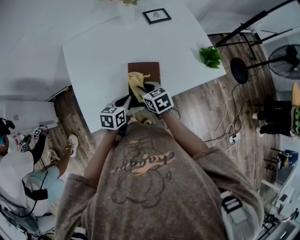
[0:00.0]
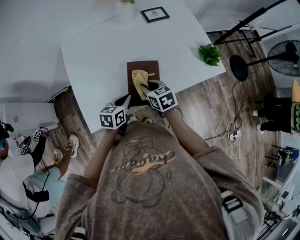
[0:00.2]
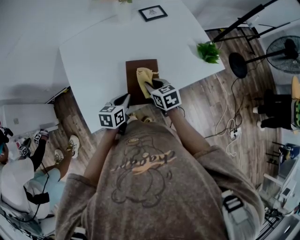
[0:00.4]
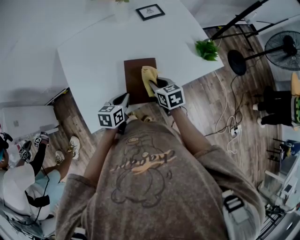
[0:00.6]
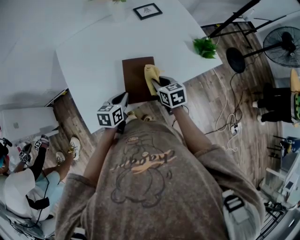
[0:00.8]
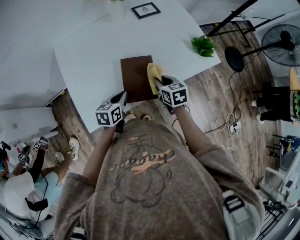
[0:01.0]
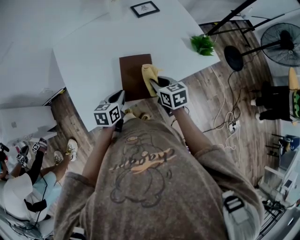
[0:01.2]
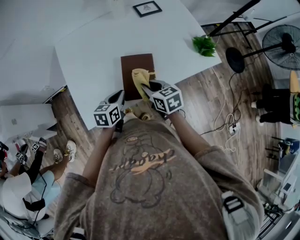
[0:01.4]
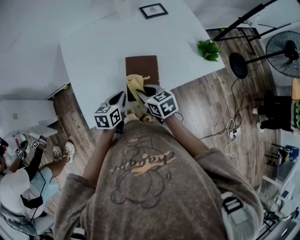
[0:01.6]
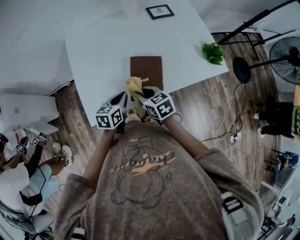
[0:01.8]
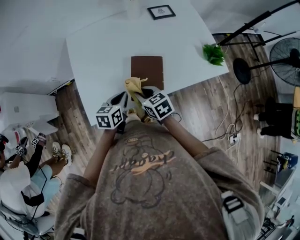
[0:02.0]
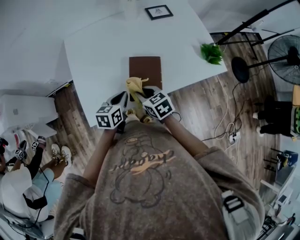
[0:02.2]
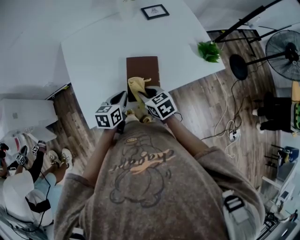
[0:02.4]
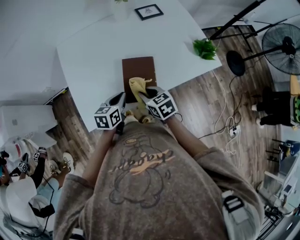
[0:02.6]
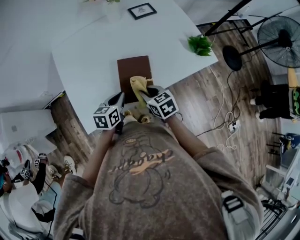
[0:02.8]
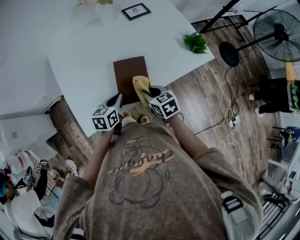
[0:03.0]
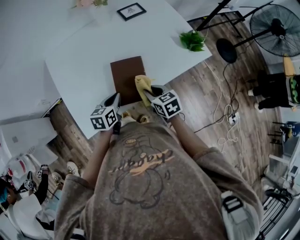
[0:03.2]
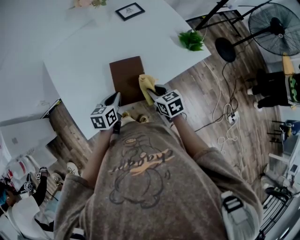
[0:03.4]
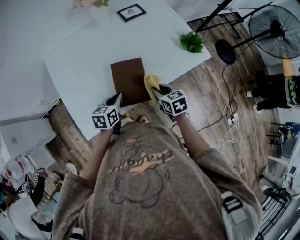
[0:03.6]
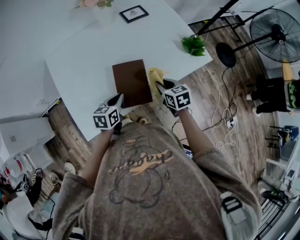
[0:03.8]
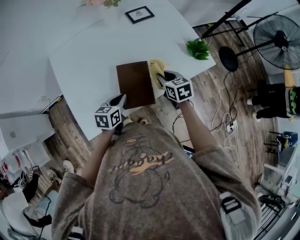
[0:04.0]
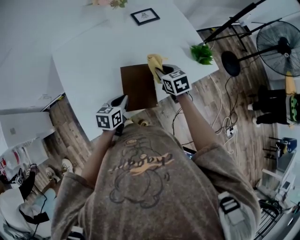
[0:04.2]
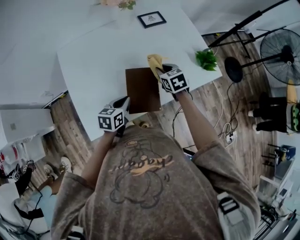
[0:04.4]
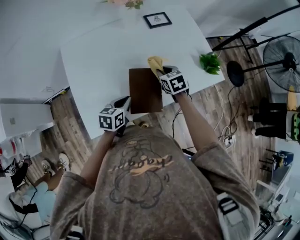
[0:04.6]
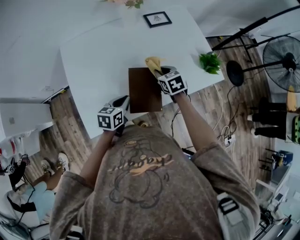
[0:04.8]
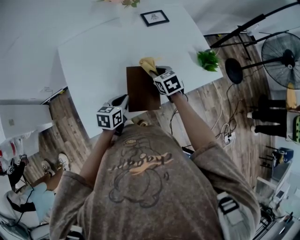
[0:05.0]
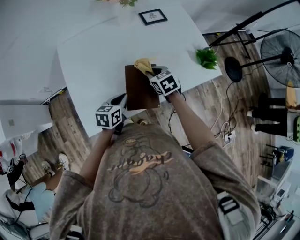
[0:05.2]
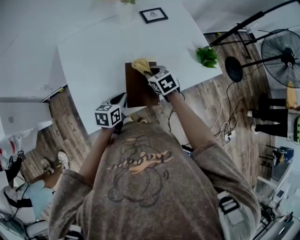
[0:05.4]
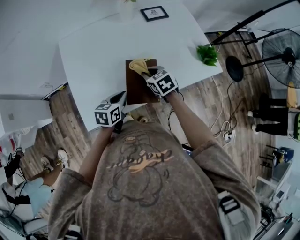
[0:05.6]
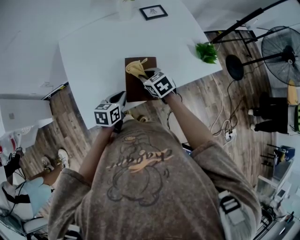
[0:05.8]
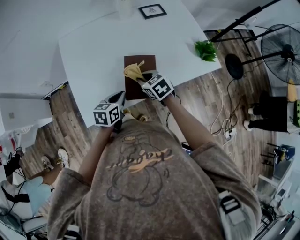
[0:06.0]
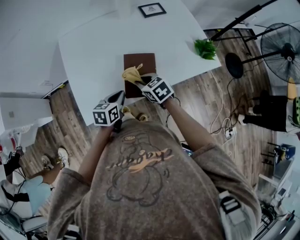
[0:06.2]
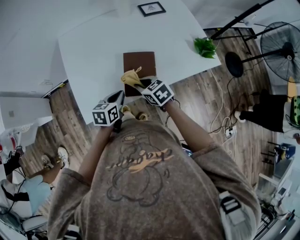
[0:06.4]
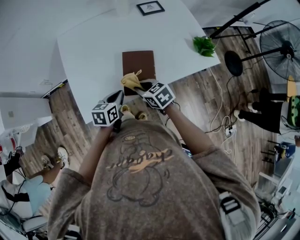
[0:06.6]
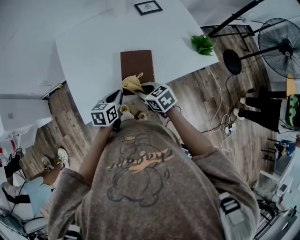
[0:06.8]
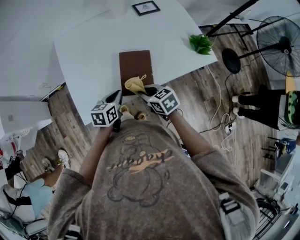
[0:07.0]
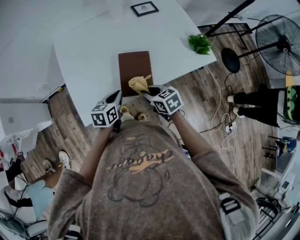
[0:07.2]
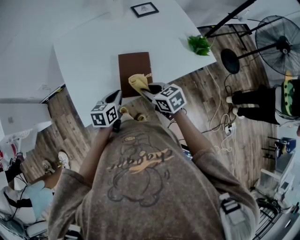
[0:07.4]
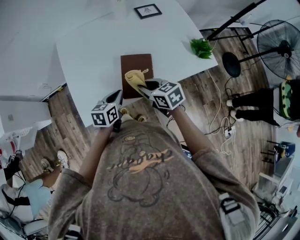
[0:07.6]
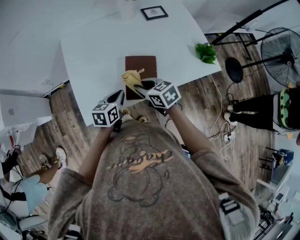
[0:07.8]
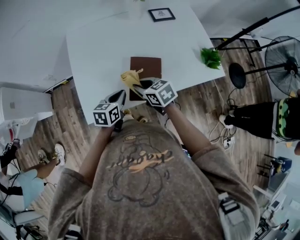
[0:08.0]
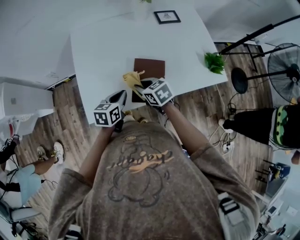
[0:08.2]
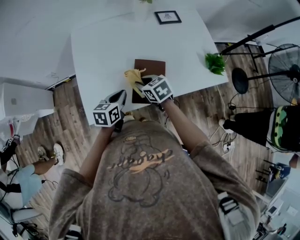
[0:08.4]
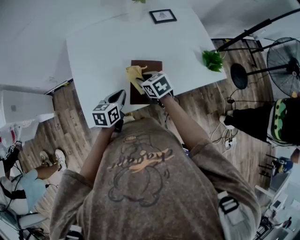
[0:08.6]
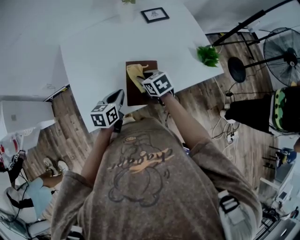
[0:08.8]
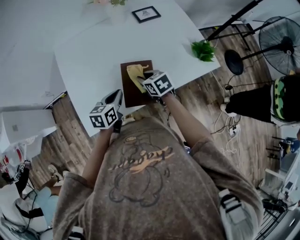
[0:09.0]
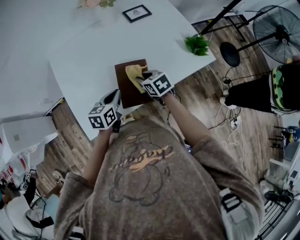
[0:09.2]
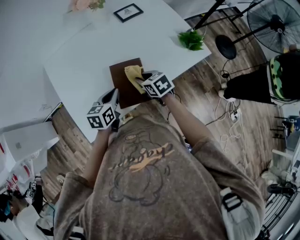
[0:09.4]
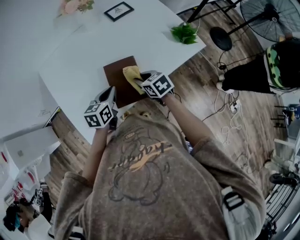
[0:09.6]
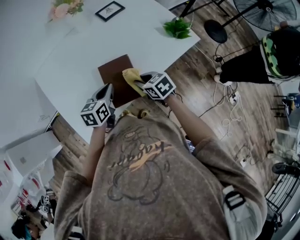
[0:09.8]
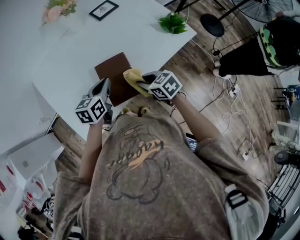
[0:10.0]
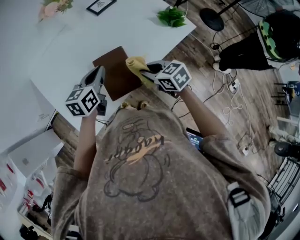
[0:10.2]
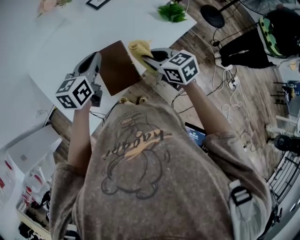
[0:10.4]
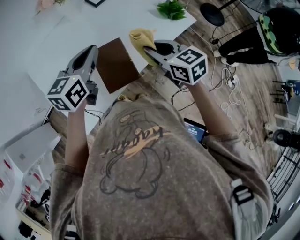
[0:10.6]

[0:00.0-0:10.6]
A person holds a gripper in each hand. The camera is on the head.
0:00.0 to 0:01.6: The right gripper is displaced backward by about 5 cm, and reaches about 10 cm to the right, then returns.
0:01.6 to 0:03.0: The right gripper moves to the right, about 5 cm.
0:03.0 to 0:04.6: The right gripper heads forward, covering some 15 cm.
0:04.6 to 0:06.0: The right gripper heads backward and to the left, covering some 15 cm.
0:06.0 to 0:07.6: The right gripper shifts approximately 5 cm backward.
0:07.6 to 0:09.0: The left gripper changes place by about 5 cm. The right gripper is displaced forward by roughly 10 cm.
0:09.0 to 0:10.6: The two grippers go approximately 20 cm upward and to the right. The right gripper changes its angle by roughly 20 degrees; the left gripper turns by about 30 degrees.

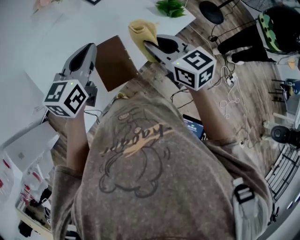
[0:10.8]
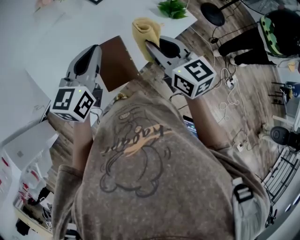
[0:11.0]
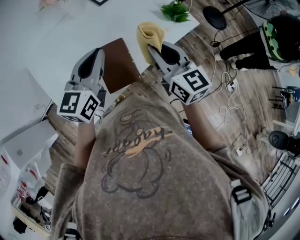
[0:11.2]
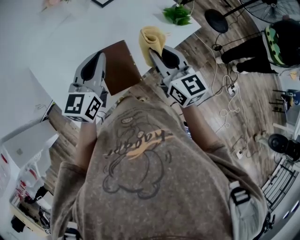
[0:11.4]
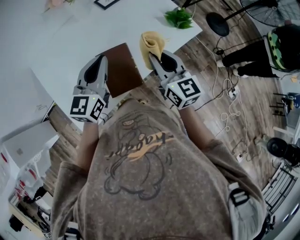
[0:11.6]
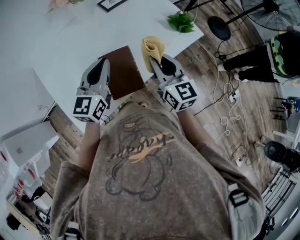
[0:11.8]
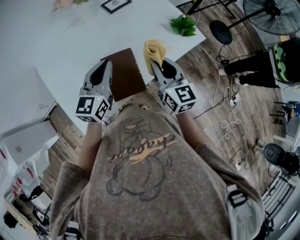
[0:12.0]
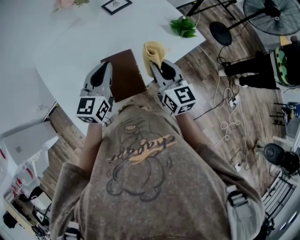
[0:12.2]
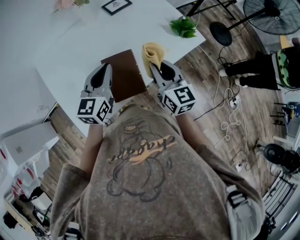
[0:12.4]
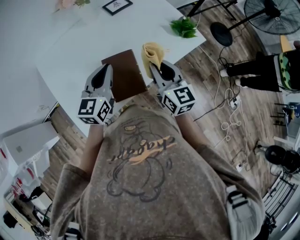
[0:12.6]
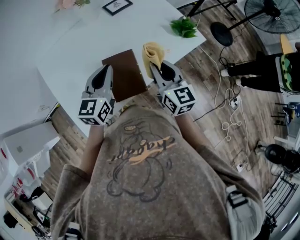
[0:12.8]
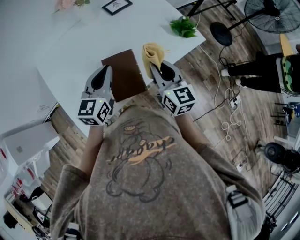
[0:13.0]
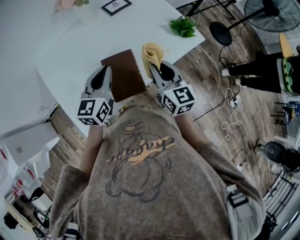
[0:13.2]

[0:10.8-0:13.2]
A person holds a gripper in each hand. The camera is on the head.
0:10.8 to 0:12.0: The left gripper moves downward, some 5 cm.
0:12.0 to 0:13.2: The grippers move only a little.

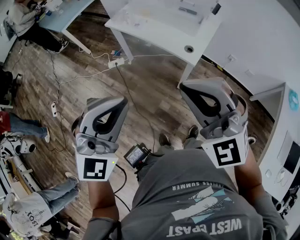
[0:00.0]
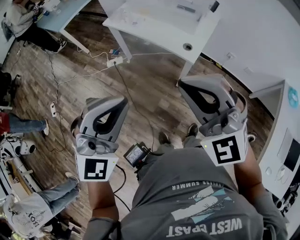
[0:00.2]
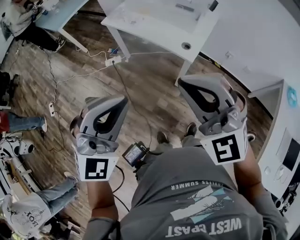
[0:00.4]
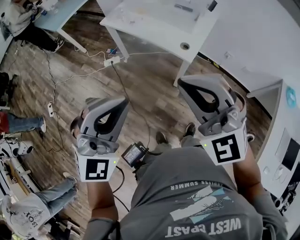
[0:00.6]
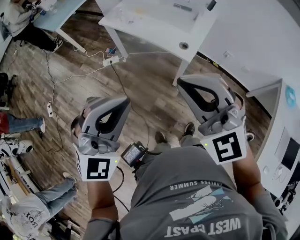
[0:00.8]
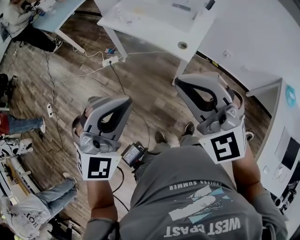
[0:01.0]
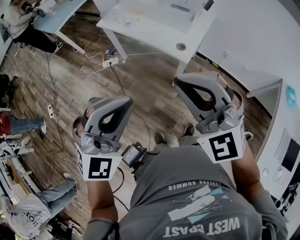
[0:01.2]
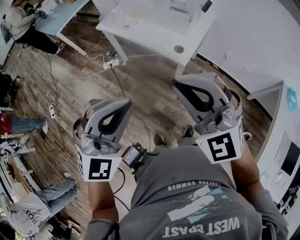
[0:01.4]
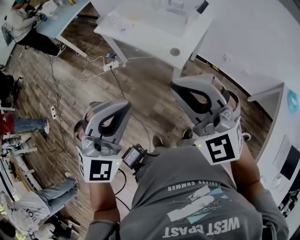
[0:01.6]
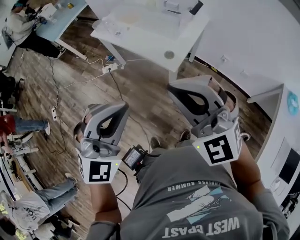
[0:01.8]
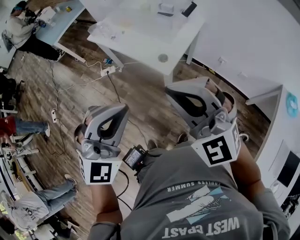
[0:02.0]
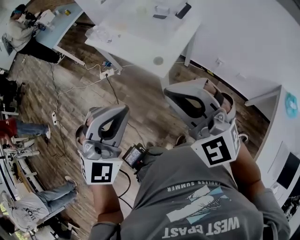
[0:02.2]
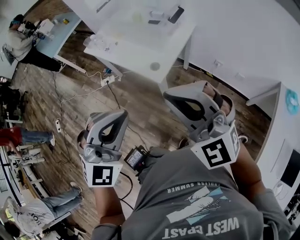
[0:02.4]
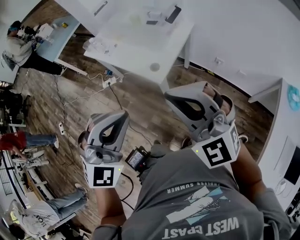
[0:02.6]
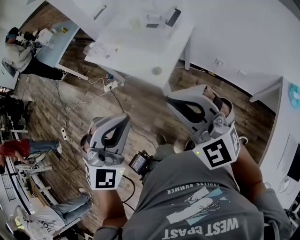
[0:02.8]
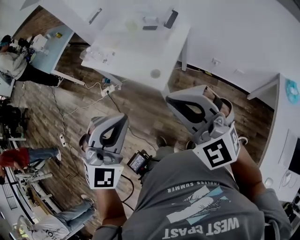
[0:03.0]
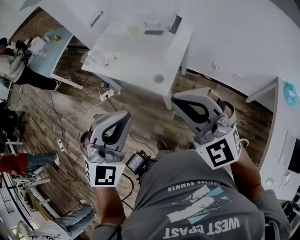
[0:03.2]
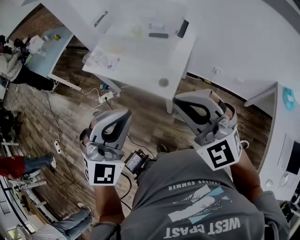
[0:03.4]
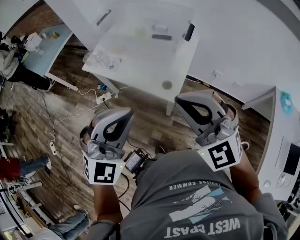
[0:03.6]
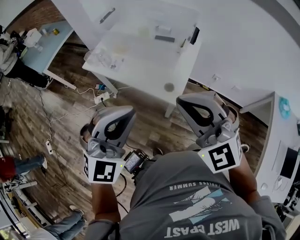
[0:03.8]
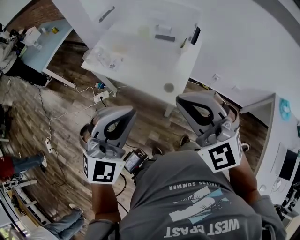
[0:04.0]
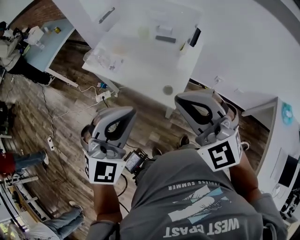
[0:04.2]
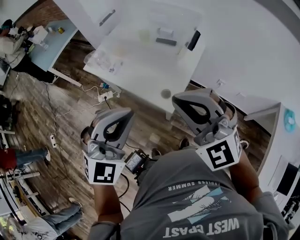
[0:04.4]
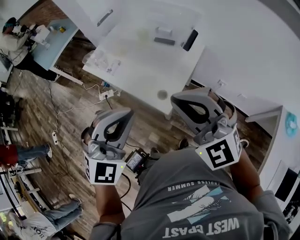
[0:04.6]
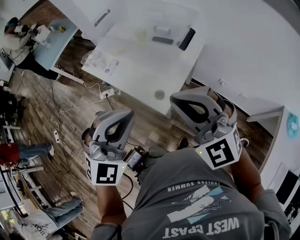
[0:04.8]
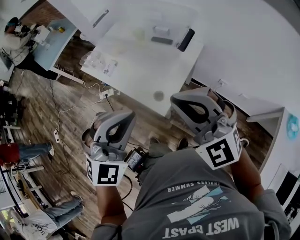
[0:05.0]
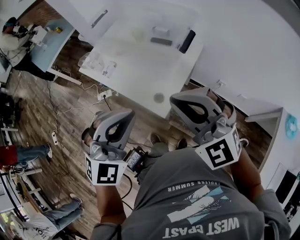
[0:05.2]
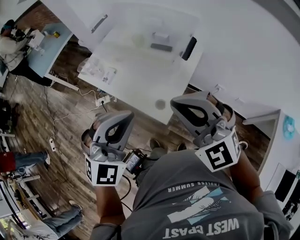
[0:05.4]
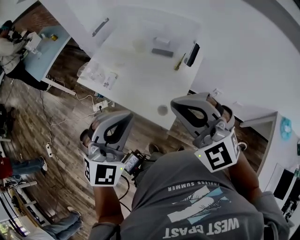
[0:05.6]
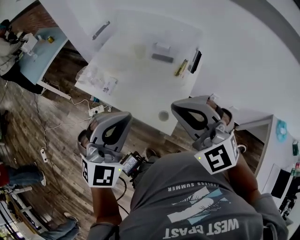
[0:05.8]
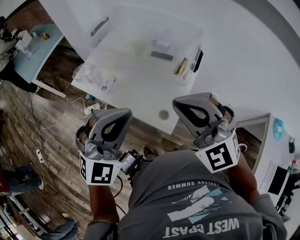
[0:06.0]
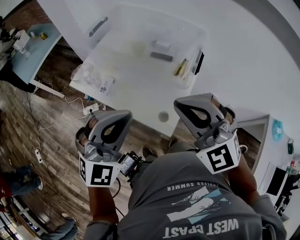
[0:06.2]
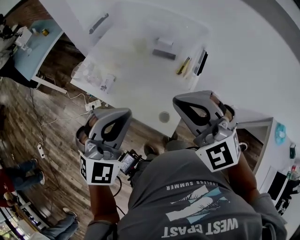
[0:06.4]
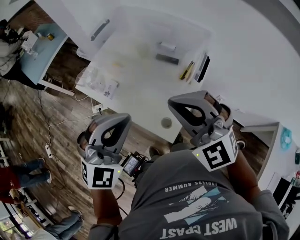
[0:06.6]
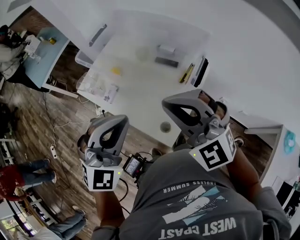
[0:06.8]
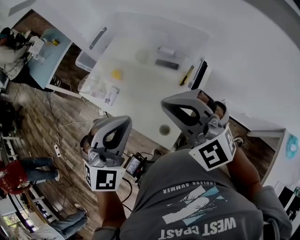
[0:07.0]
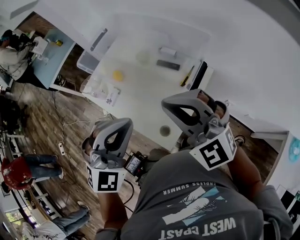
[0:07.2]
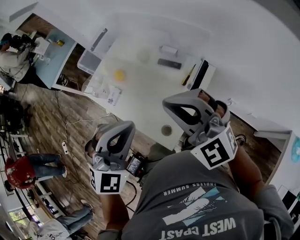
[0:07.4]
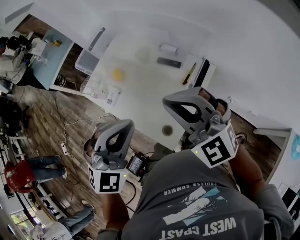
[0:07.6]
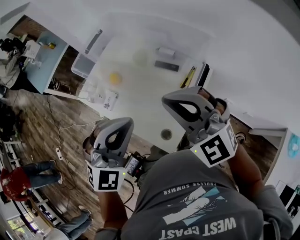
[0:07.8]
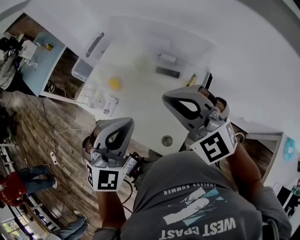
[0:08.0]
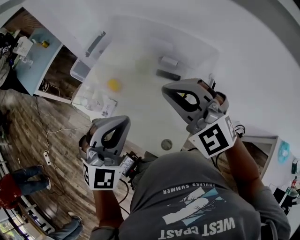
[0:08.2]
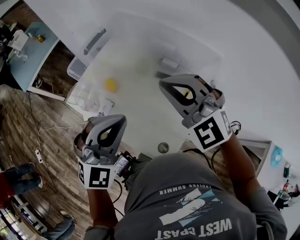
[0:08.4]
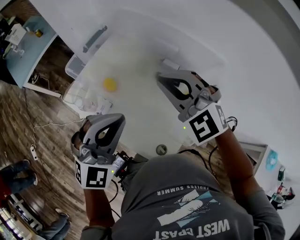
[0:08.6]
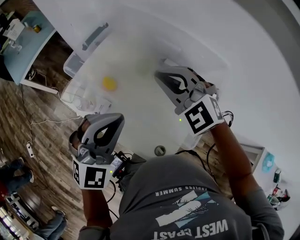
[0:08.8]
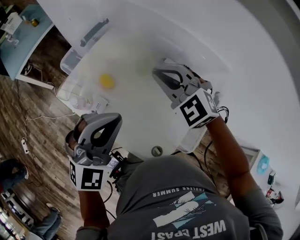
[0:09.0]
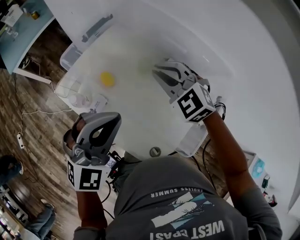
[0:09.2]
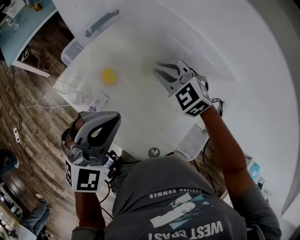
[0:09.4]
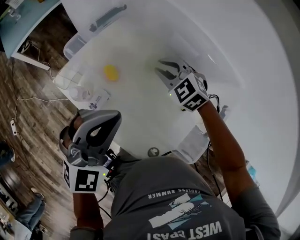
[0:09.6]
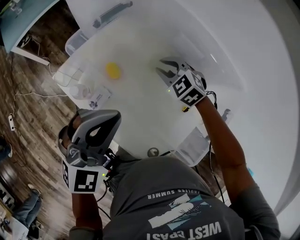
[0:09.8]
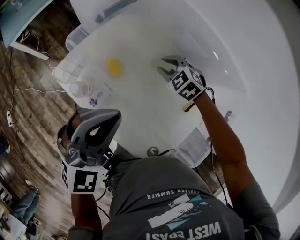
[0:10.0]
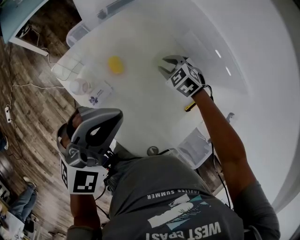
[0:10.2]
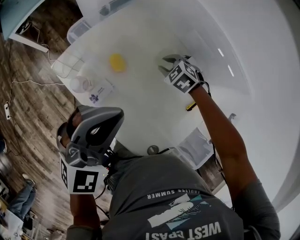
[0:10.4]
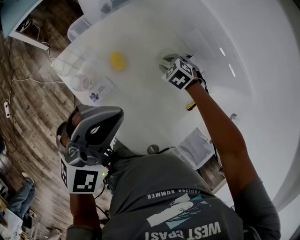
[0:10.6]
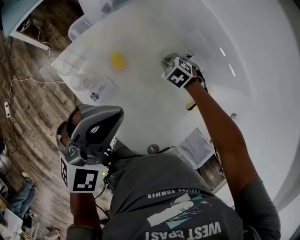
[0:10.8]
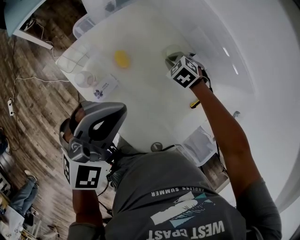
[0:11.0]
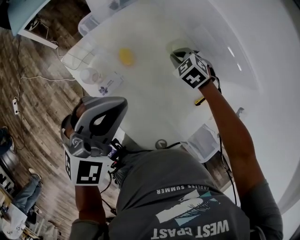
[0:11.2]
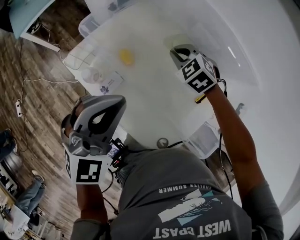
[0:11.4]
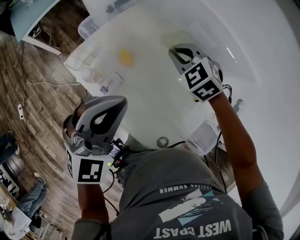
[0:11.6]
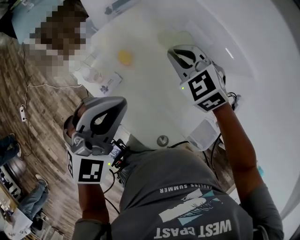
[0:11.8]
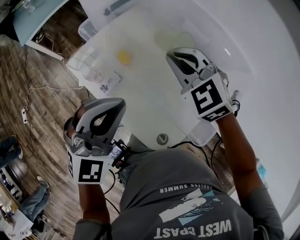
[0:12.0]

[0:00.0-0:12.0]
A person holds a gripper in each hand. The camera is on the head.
0:00.0 to 0:01.6: The grippers both shift to the right by about 10 cm.
0:01.6 to 0:03.0: The left gripper travels to the right and forward by roughly 15 cm. Meanwhile the right gripper shifts some 15 cm to the right.
0:03.0 to 0:04.4: The right gripper travels forward and to the left by approximately 15 cm. The left gripper goes about 15 cm forward.
0:04.4 to 0:06.0: The two grippers go approximately 15 cm forward.
0:06.0 to 0:07.6: The right gripper heads forward and to the right, covering about 15 cm. The left gripper moves to the right and forward, about 15 cm.
0:07.6 to 0:09.0: Both grippers move forward and to the left, approximately 25 cm. The right gripper changes its angle by some 20 degrees.
0:09.0 to 0:10.4: The left gripper shifts some 10 cm to the left and downward. Meanwhile the right gripper heads downward, covering about 25 cm, angles its fingers downward, by some 40 degrees, and opens.
0:10.4 to 0:12.0: The left gripper moves backward, some 5 cm. The right gripper is displaced upward and backward by roughly 25 cm, tilts its fingers some 30 degrees upward, and closes.
